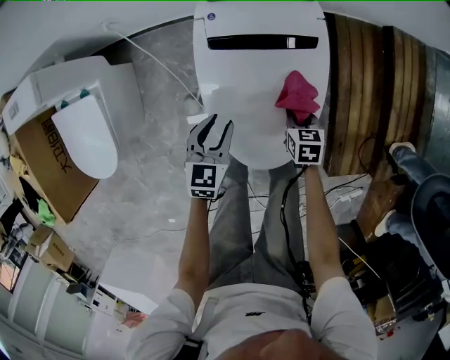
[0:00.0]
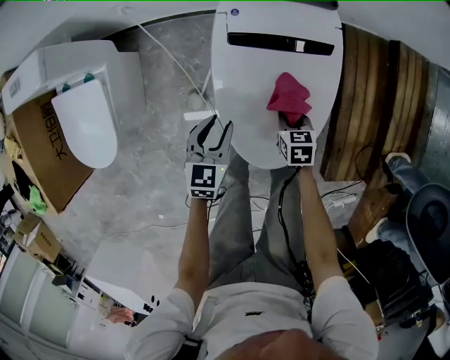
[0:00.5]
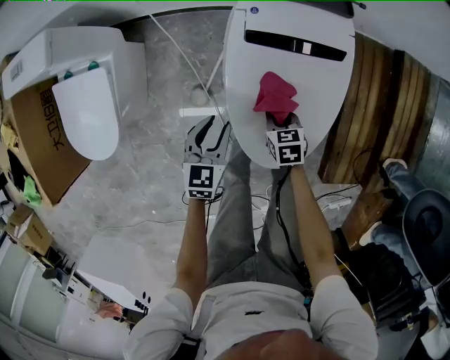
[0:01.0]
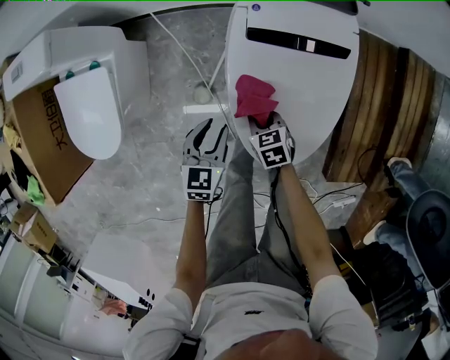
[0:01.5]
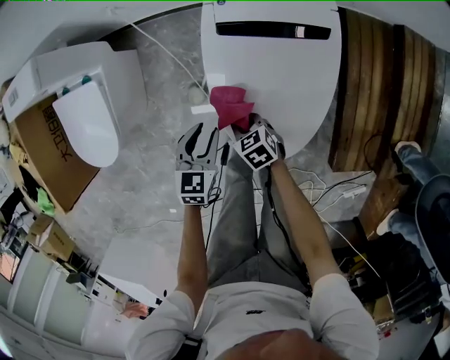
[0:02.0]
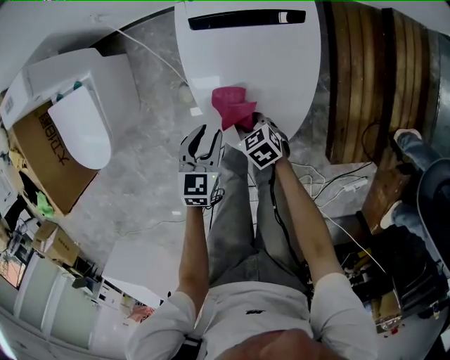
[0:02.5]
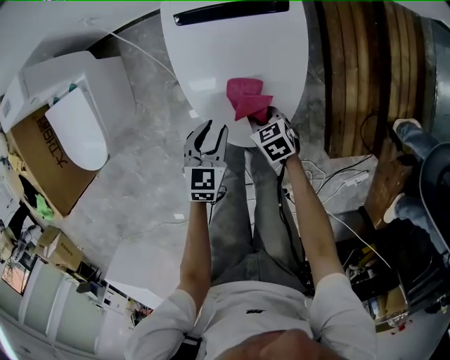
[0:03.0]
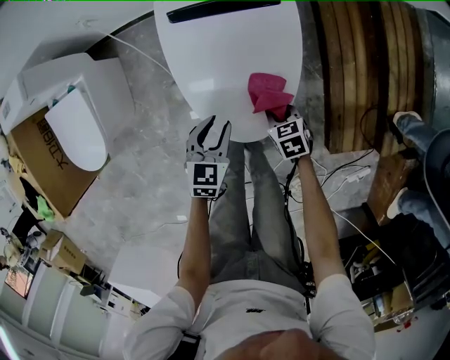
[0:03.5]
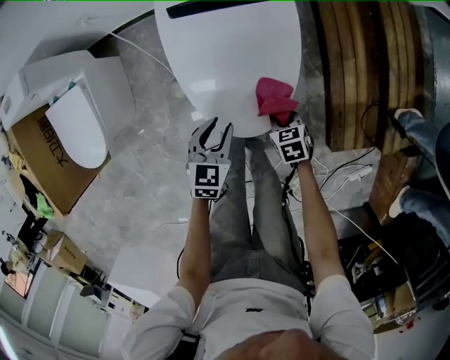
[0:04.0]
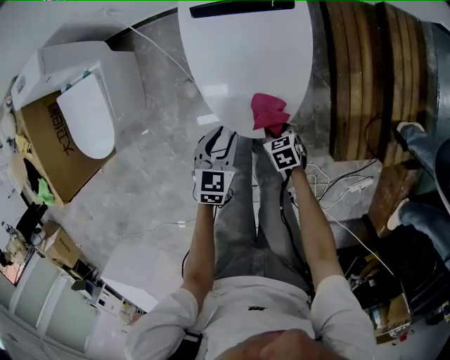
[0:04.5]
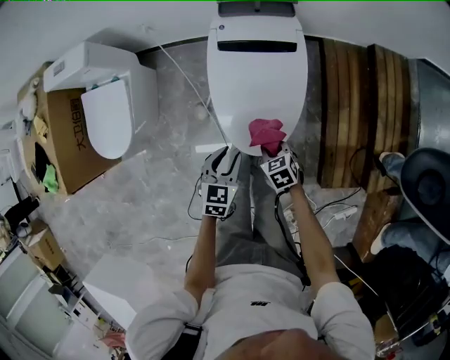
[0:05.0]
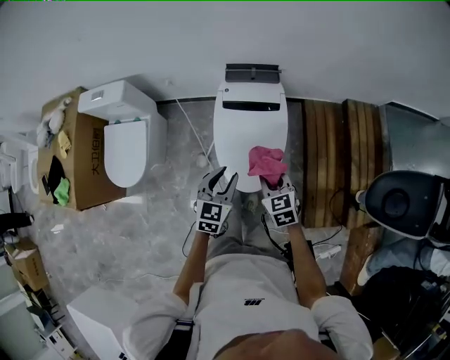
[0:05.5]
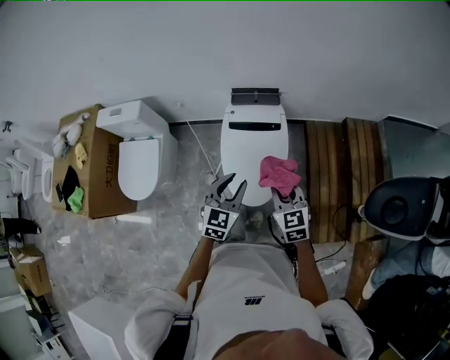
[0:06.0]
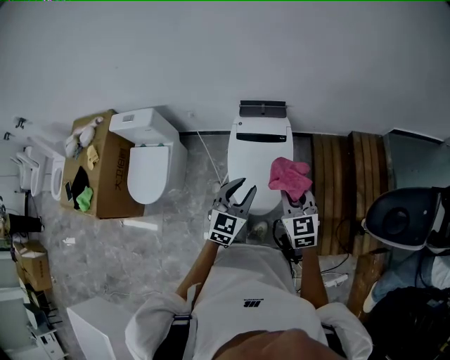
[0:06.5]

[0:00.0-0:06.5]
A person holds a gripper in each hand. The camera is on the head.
0:00.0 to 0:02.0: The right gripper changes place by roughly 20 cm, and swivels roughly 30 degrees; the left gripper shifts by about 10 cm.
0:02.0 to 0:04.5: Both grippers move backward and to the right, approximately 20 cm.
0:04.5 to 0:06.5: Both grippers travel together upward, some 50 cm. The right gripper tips its fingers upward by some 40 degrees. Meanwhile the left gripper rotates about 30 degrees.

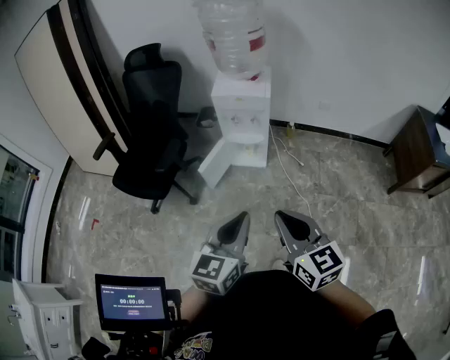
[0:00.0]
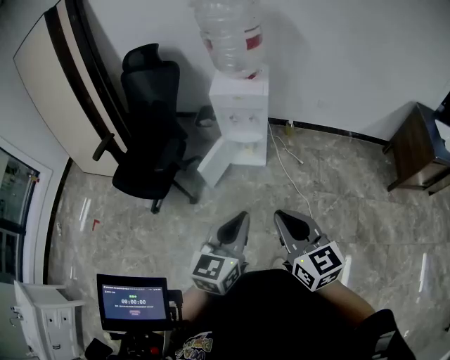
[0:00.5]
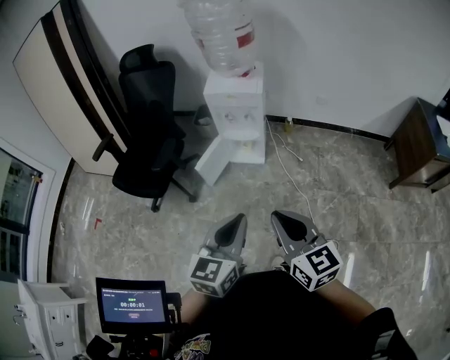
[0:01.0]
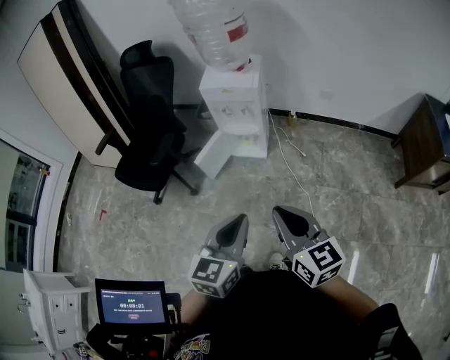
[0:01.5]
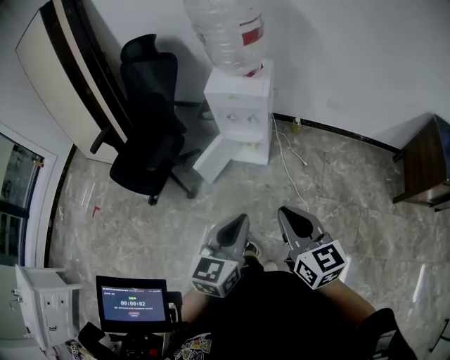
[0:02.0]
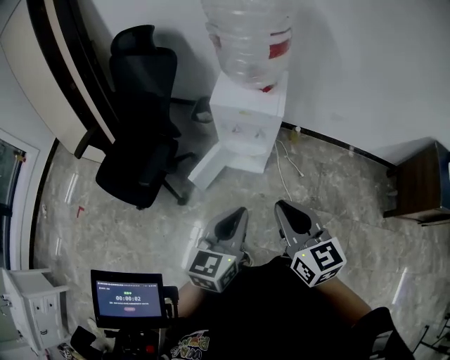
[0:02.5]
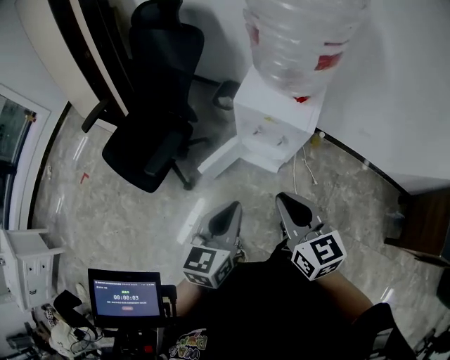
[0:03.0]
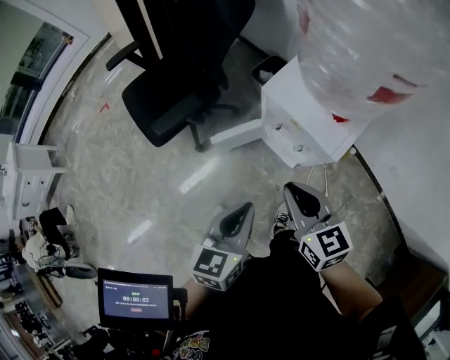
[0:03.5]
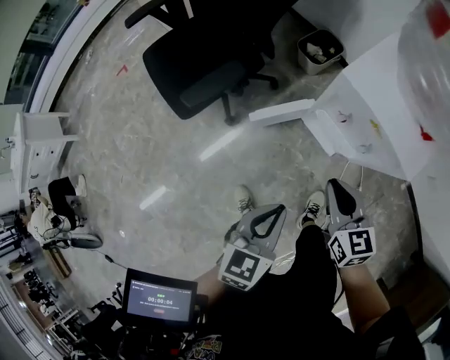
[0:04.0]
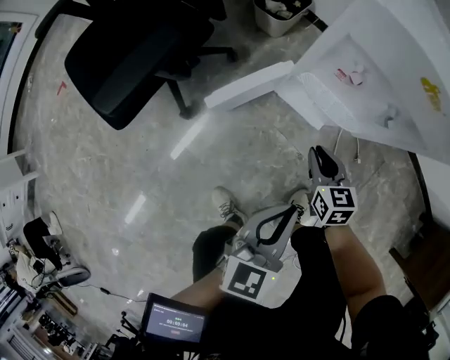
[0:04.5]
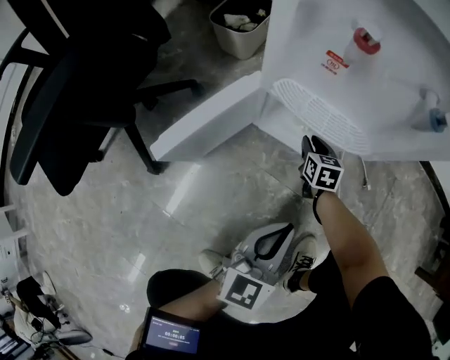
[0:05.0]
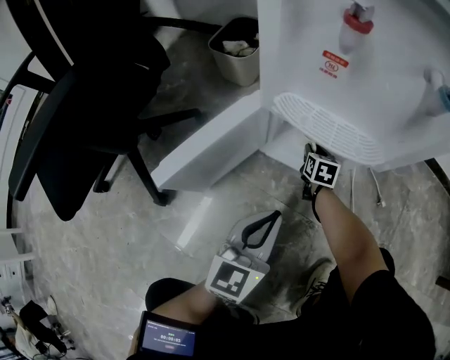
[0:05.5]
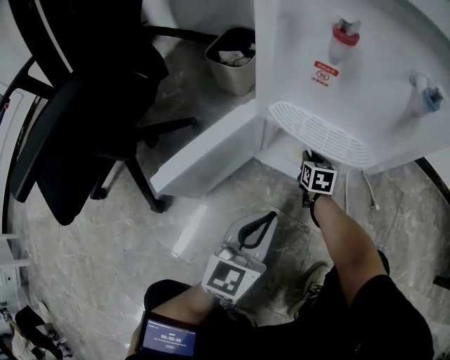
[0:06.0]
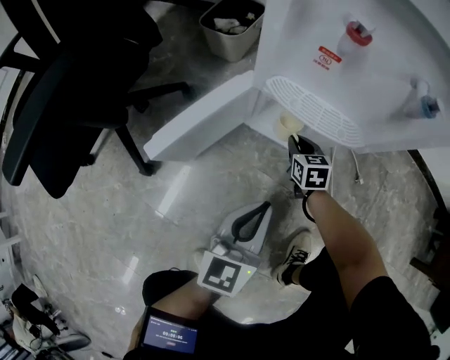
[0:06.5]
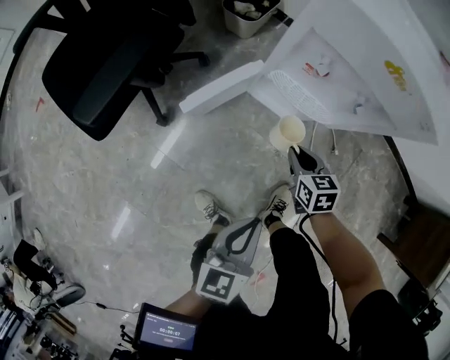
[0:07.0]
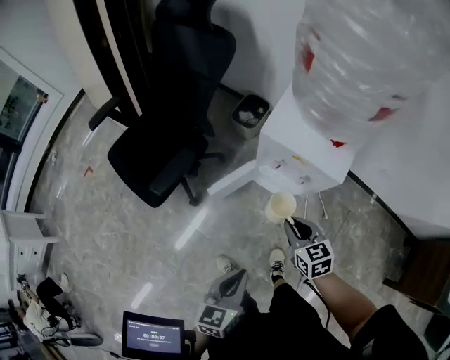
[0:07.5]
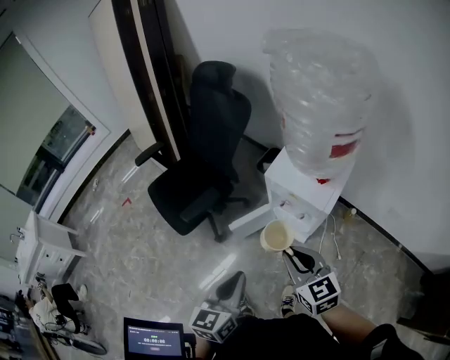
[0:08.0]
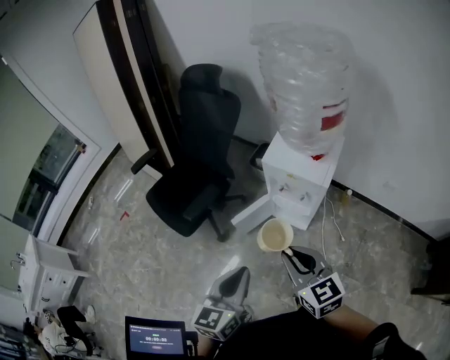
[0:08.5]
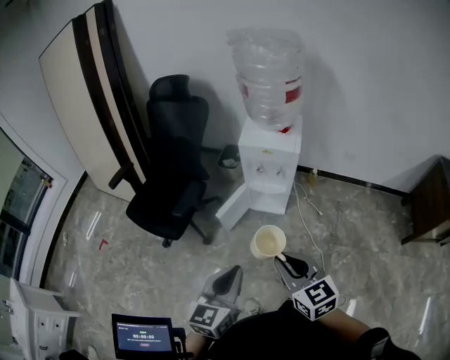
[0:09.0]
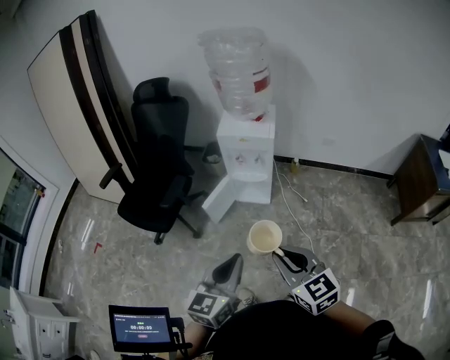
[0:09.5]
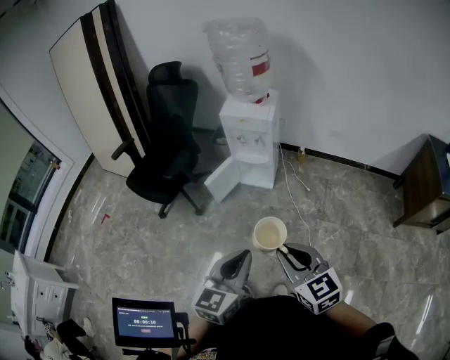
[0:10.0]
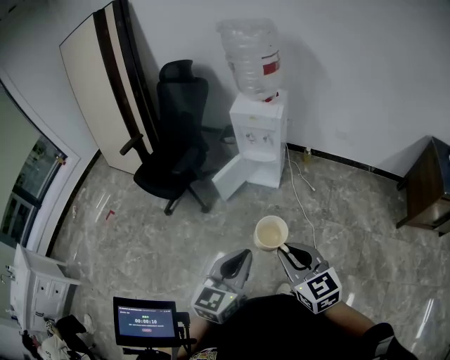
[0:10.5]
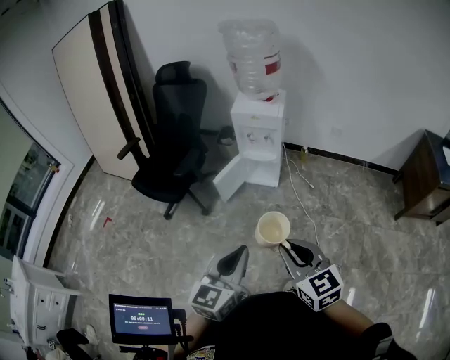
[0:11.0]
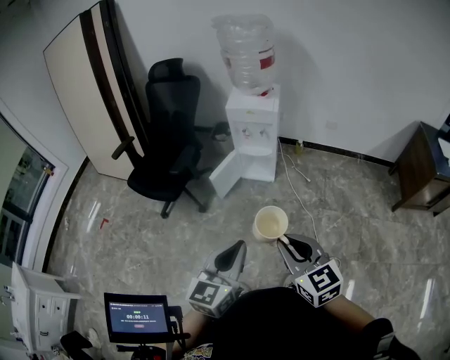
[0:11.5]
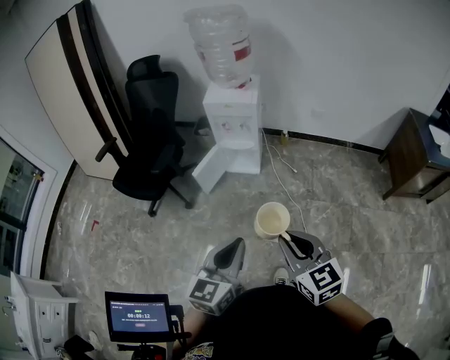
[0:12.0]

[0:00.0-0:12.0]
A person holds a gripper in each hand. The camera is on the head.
0:00.0 to 0:02.0: The left gripper shifts about 10 cm to the right and forward. Meanwhile the right gripper heads forward and to the right, covering approximately 10 cm.
0:02.0 to 0:04.0: The left gripper moves roughly 30 cm, and changes its angle by approximately 30 degrees. The right gripper moves about 40 cm, and rotates approximately 30 degrees.
0:04.0 to 0:06.0: The left gripper travels downward by about 40 cm, and swivels about 30 degrees, while the right gripper goes about 60 cm downward, and rotates about 40 degrees.
0:06.0 to 0:08.0: Both grippers travel together upward, approximately 70 cm. The right gripper turns by approximately 50 degrees. Meanwhile the left gripper turns by approximately 30 degrees.
0:08.0 to 0:10.0: The right gripper ends up roughly 50 cm from where it was, while the left gripper changes place by roughly 40 cm, and turns by roughly 30 degrees.
0:10.0 to 0:12.0: The right gripper reaches some 10 cm to the left, then returns.

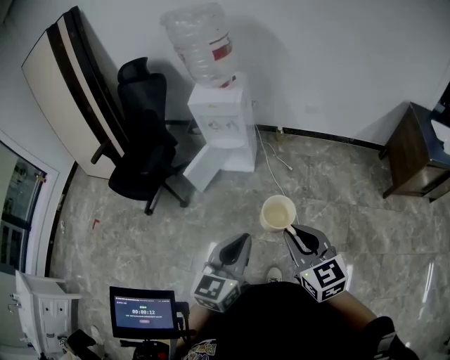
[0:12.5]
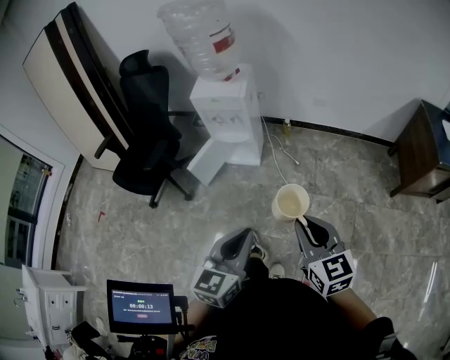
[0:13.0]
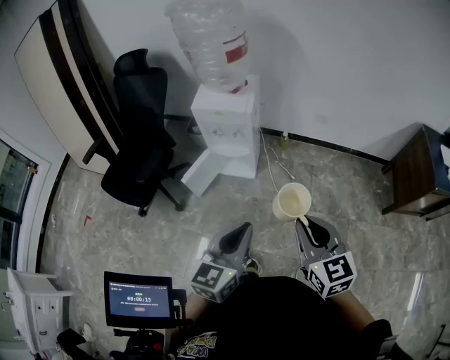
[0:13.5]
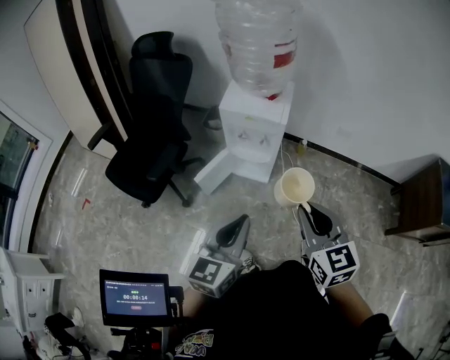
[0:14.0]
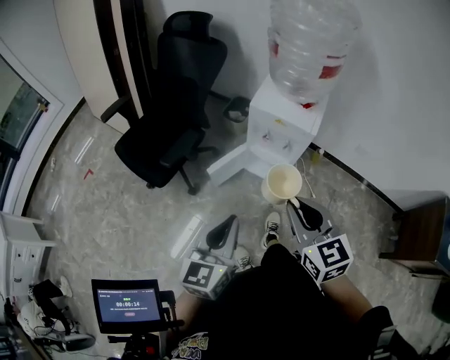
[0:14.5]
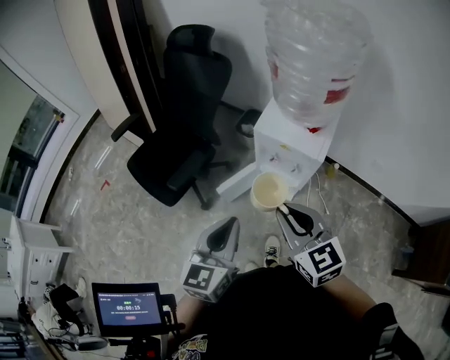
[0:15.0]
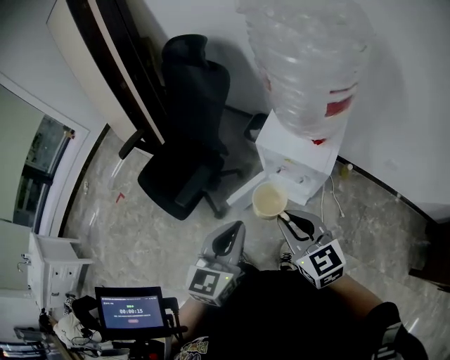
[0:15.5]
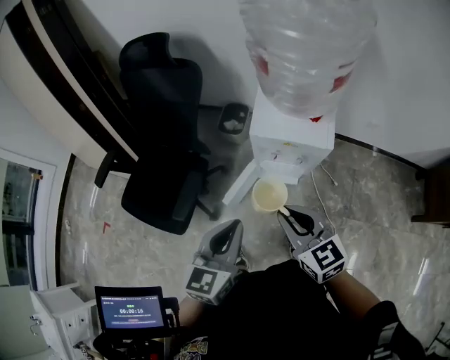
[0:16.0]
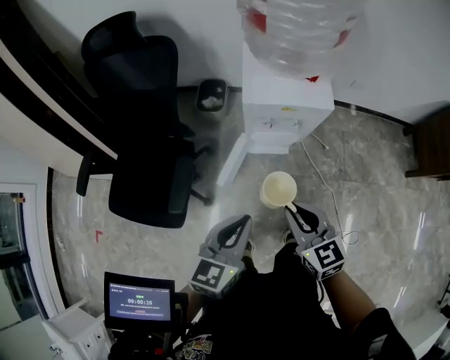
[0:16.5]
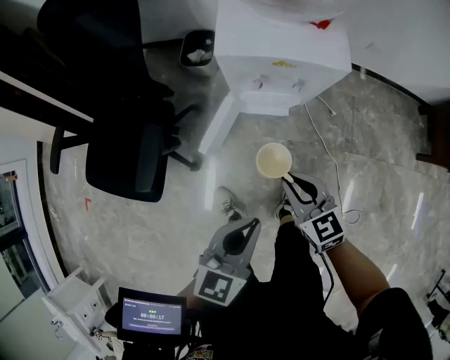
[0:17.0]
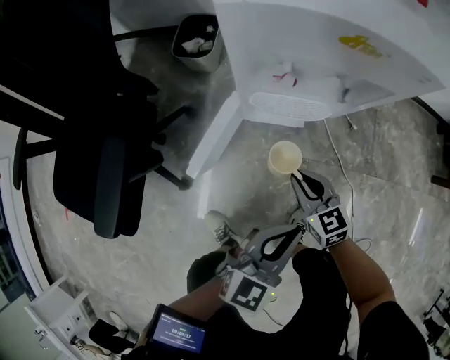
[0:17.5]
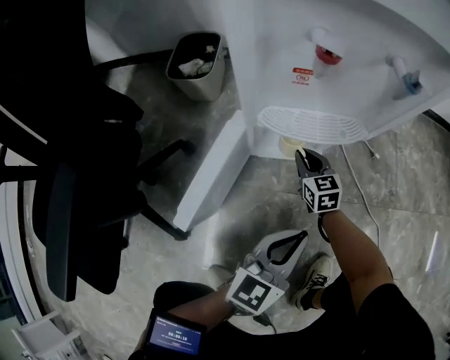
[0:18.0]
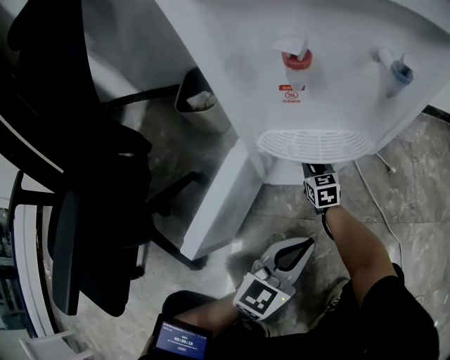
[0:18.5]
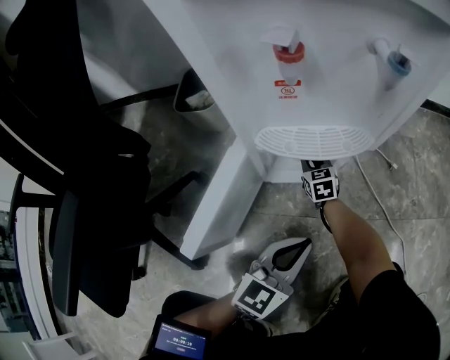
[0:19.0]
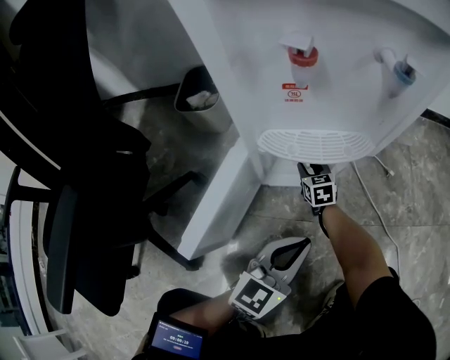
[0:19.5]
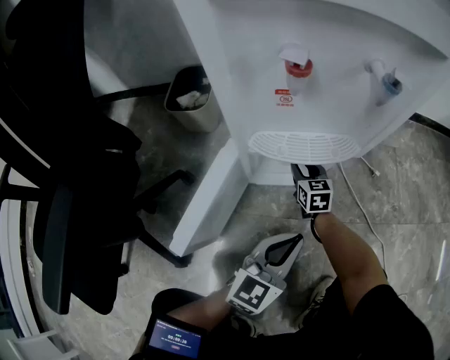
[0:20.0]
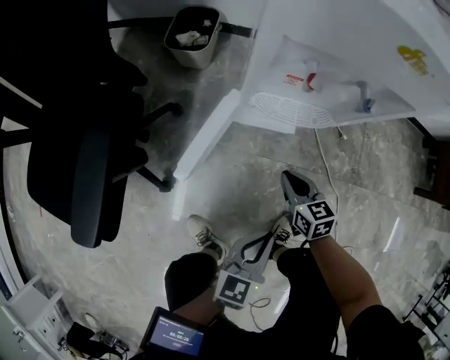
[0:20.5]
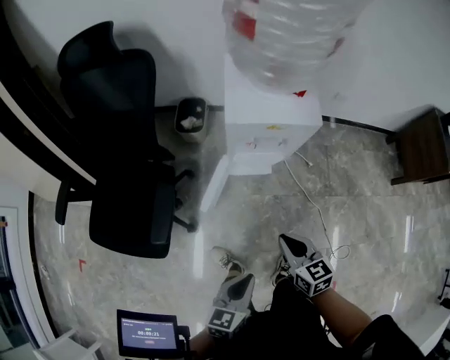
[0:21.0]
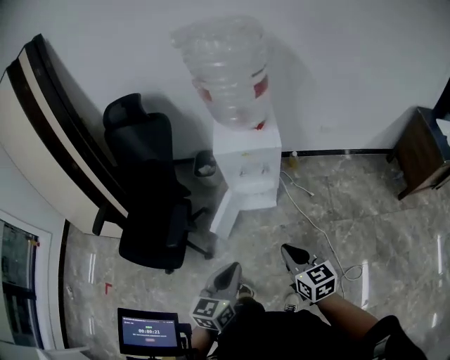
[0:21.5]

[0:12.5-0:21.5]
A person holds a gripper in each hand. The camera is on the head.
0:12.5 to 0:14.5: Both grippers travel together forward and to the left, approximately 35 cm. The left gripper changes its angle by about 20 degrees.
0:14.5 to 0:17.0: The left gripper heads downward, covering some 20 cm, and rotates about 40 degrees. The right gripper moves downward, roughly 30 cm.
0:17.0 to 0:19.5: The left gripper moves downward, approximately 40 cm; the right gripper goes roughly 70 cm downward and forward, and changes its angle by approximately 20 degrees.
0:19.5 to 0:21.5: Both grippers travel together upward and backward, about 70 cm. The left gripper rotates roughly 20 degrees; the right gripper closes.
